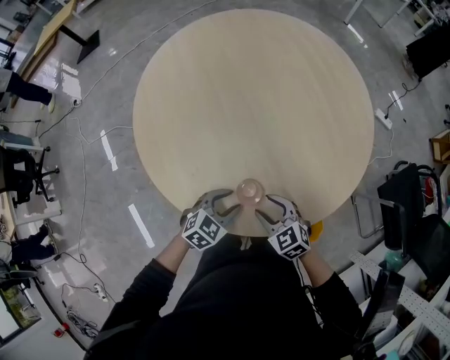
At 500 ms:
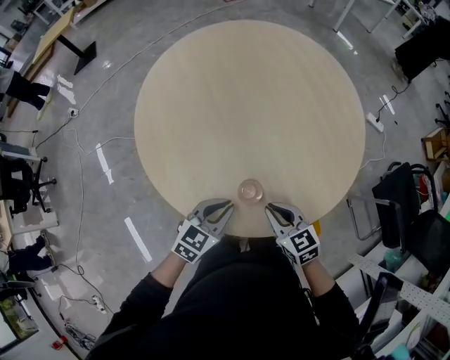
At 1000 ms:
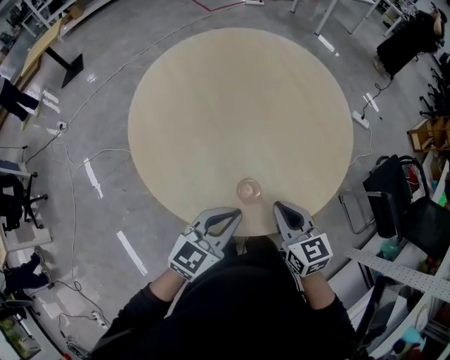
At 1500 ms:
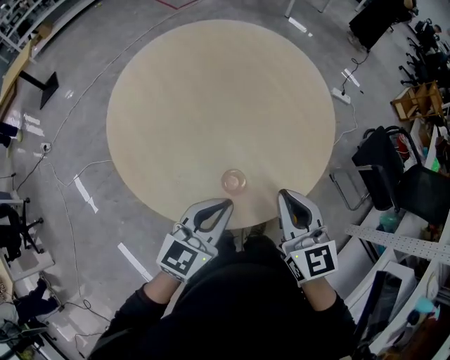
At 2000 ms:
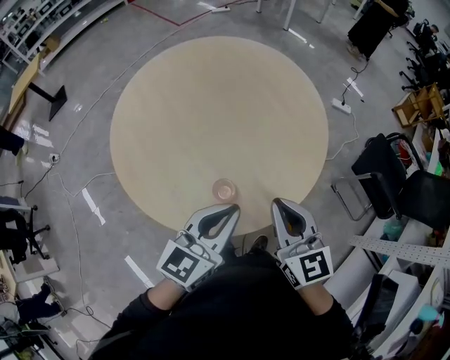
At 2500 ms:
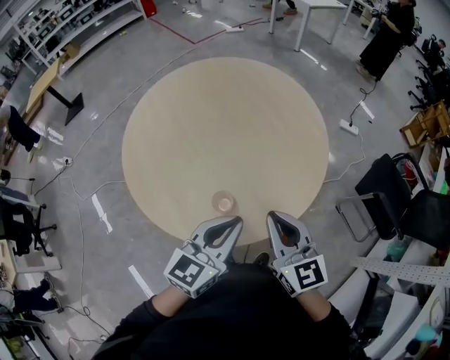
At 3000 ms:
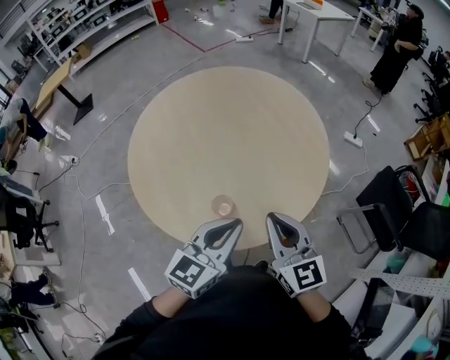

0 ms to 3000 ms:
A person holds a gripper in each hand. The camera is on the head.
0 ms to 1500 ms: The grippers both shift upward by roughly 20 cm. The right gripper turns by roughly 50 degrees, and closes its fingers, while the left gripper tips its fingers upward by some 30 degrees, and closes up.
1500 ms to 3000 ms: The left gripper is displaced to the right and upward by roughly 10 cm. Meanwhile the right gripper shifts about 5 cm to the right.

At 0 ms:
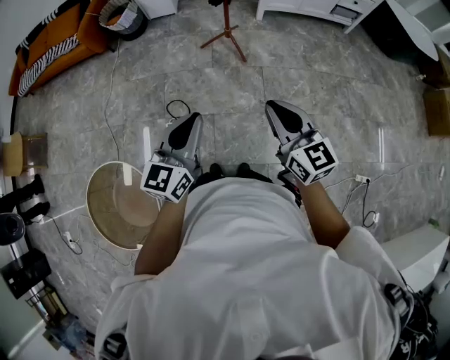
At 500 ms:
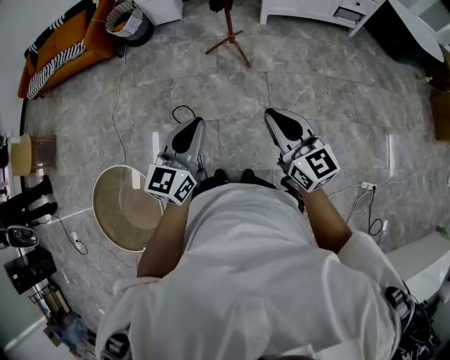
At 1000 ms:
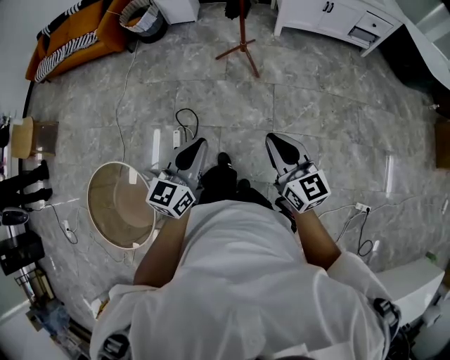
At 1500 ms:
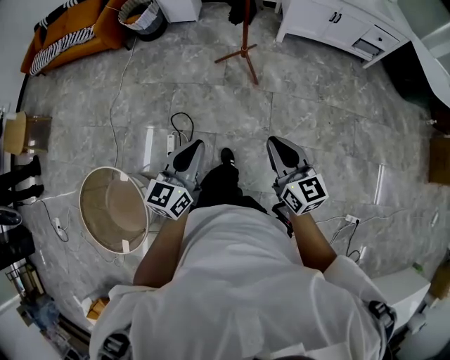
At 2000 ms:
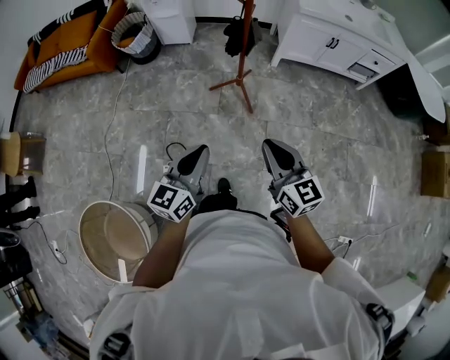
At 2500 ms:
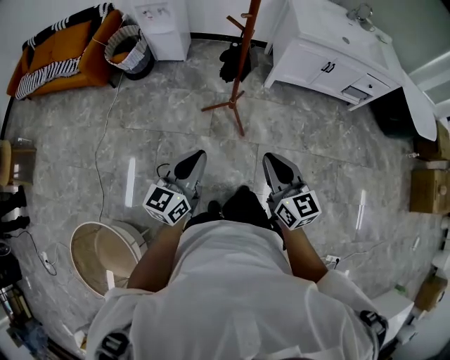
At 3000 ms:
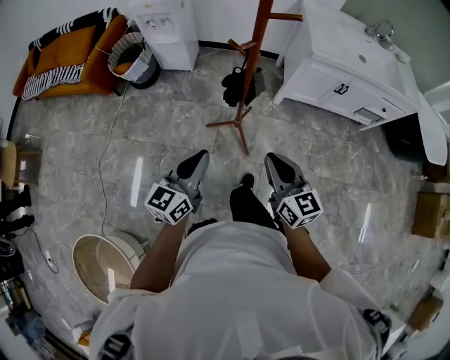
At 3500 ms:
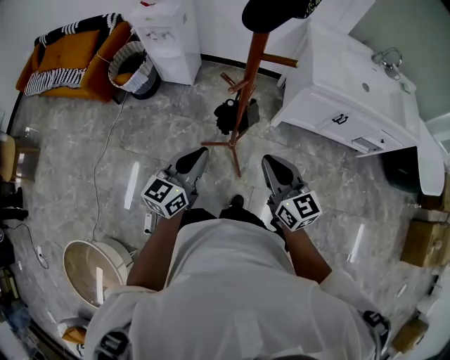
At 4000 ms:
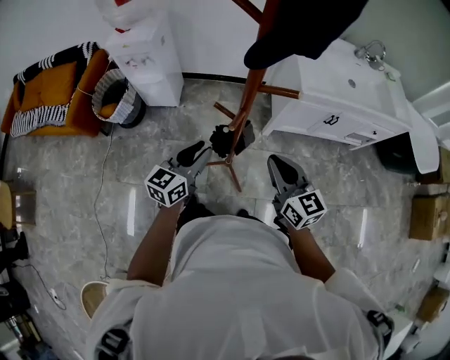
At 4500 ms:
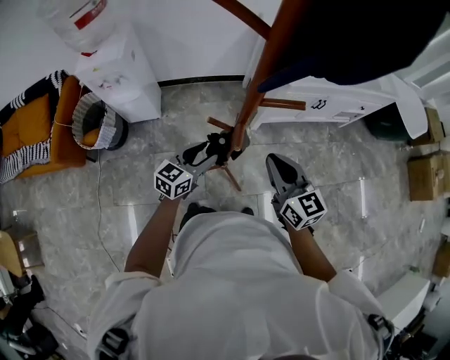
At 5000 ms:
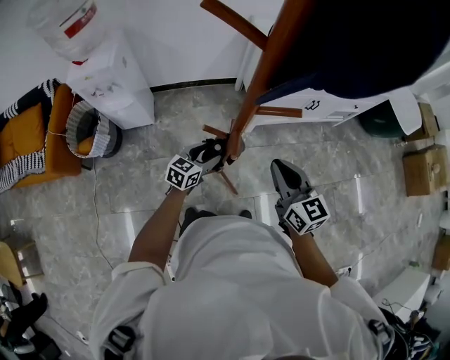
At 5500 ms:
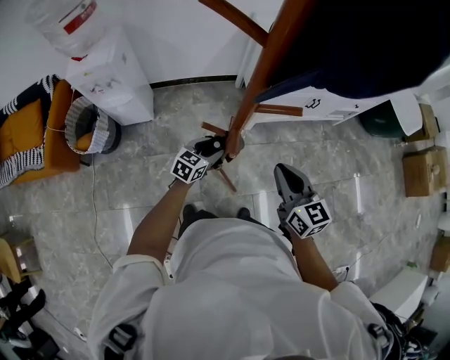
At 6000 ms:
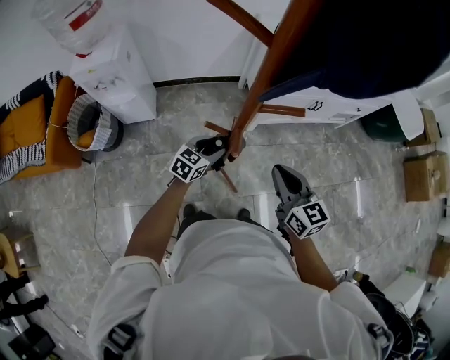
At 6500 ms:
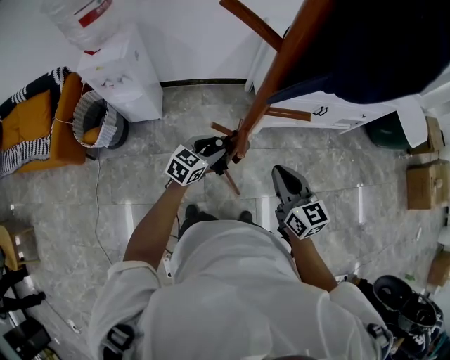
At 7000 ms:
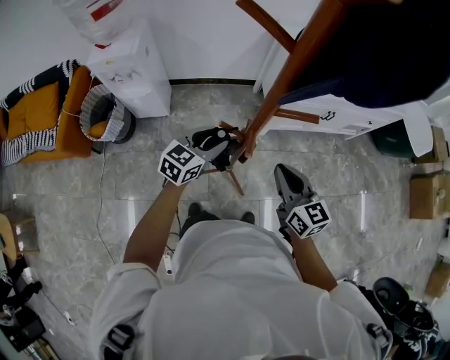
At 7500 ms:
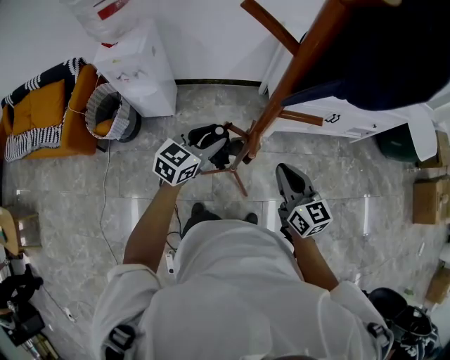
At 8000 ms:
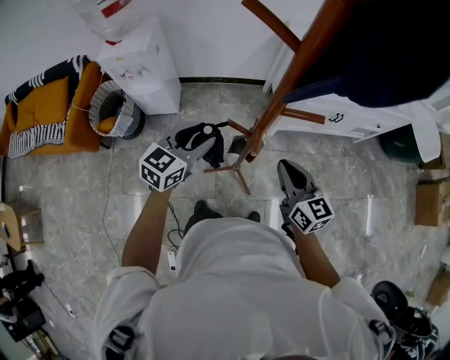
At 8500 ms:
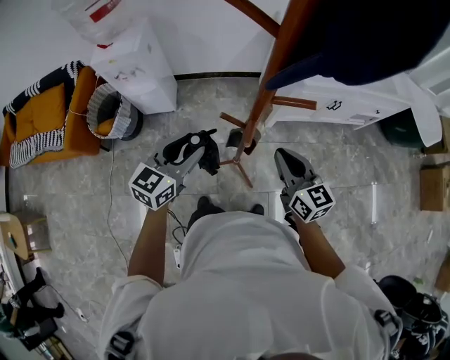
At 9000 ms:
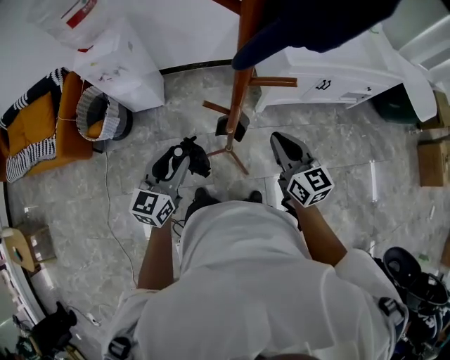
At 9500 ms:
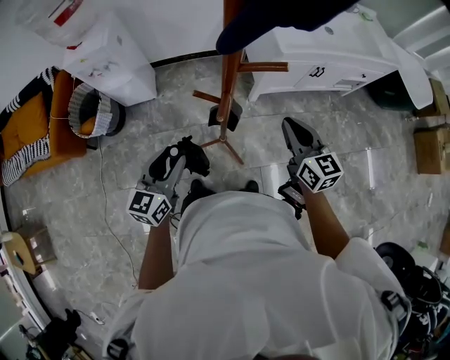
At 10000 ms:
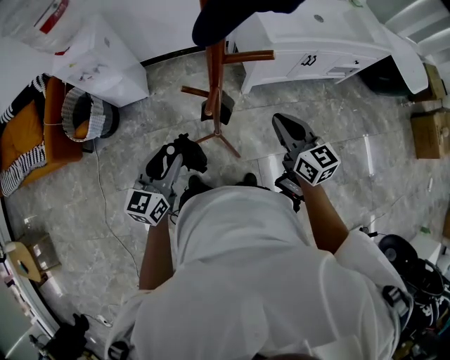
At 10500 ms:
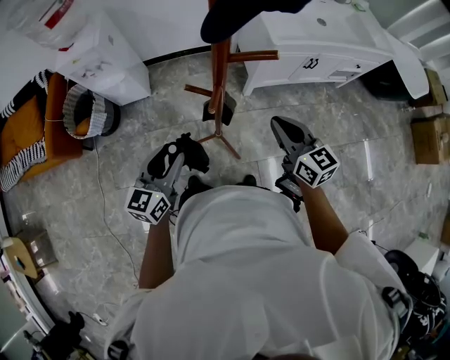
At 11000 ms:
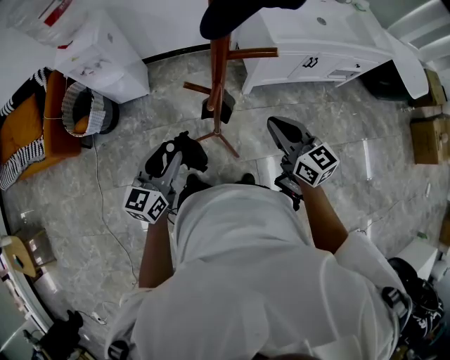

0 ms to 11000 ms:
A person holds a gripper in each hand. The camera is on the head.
0 ms to 2000 ms: The two grippers go about 25 cm forward.
2000 ms to 3500 ms: Both grippers are carried forward, approximately 40 cm.
3500 ms to 5500 ms: The left gripper shifts by roughly 30 cm, changes its angle by some 40 degrees, and opens its fingers. The right gripper changes place by roughly 10 cm, and turns by approximately 30 degrees.
5500 ms to 7500 ms: The left gripper moves upward, some 15 cm.
7500 ms to 9000 ms: The left gripper heads backward, covering roughly 10 cm.
9000 ms to 11000 ms: There are only small adjustments of the grippers.

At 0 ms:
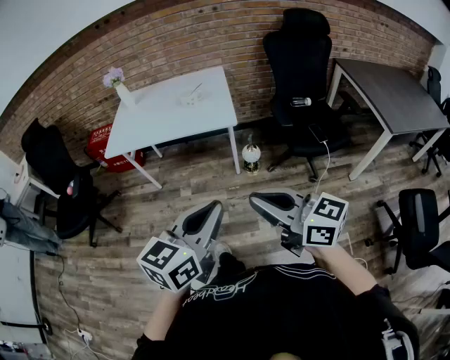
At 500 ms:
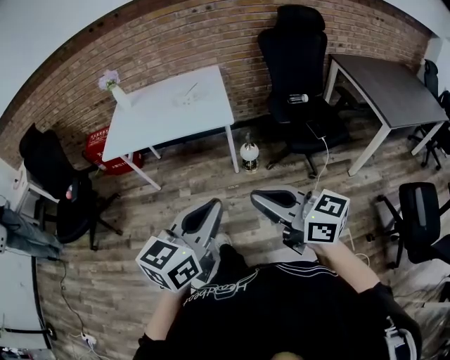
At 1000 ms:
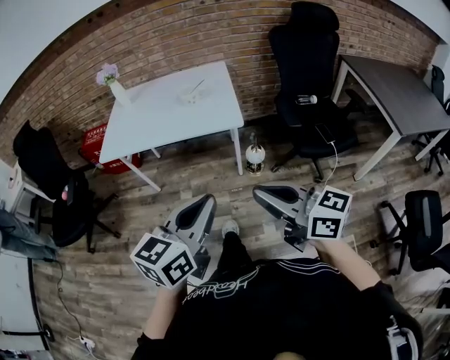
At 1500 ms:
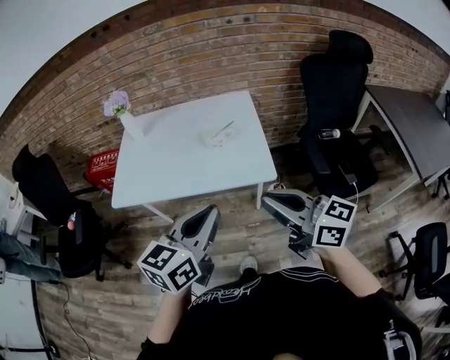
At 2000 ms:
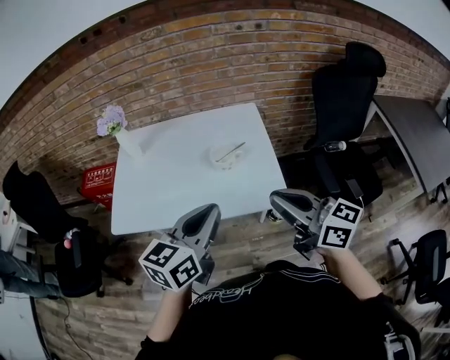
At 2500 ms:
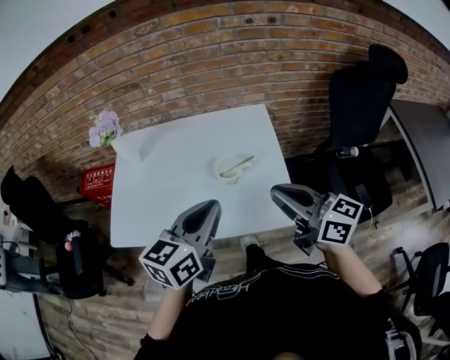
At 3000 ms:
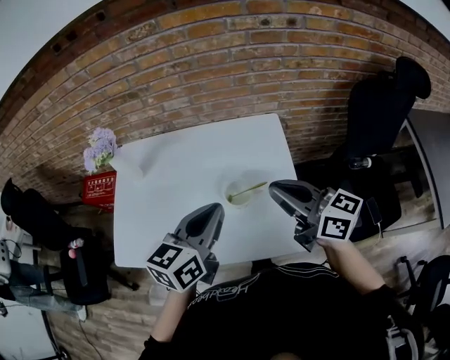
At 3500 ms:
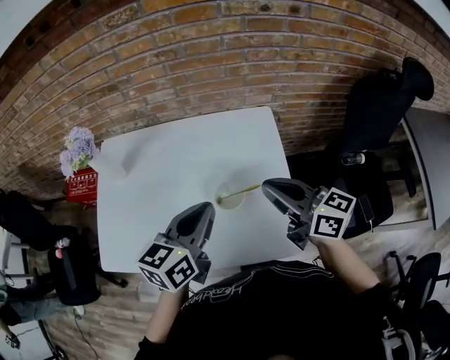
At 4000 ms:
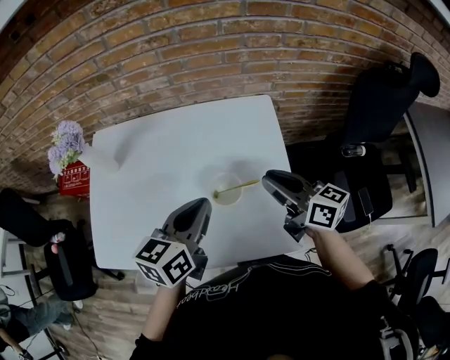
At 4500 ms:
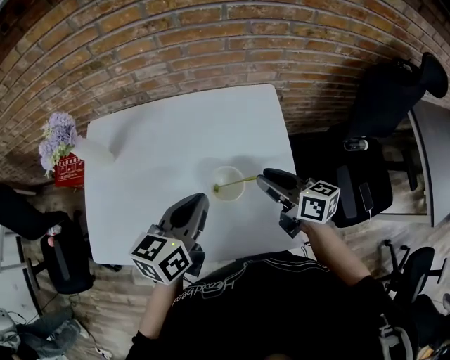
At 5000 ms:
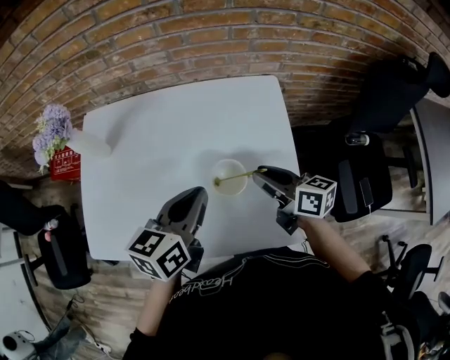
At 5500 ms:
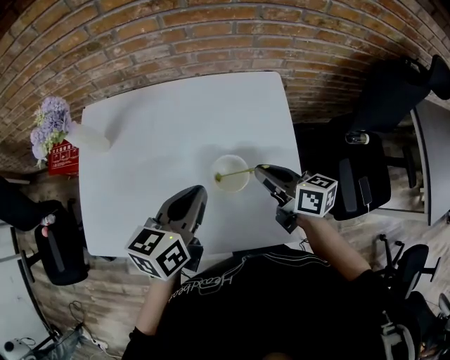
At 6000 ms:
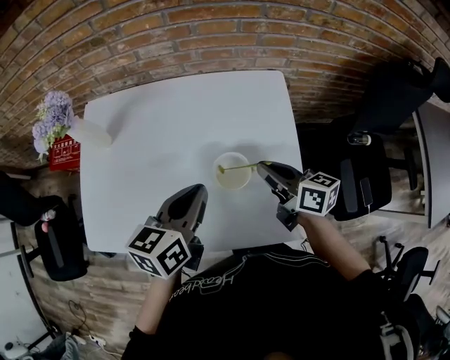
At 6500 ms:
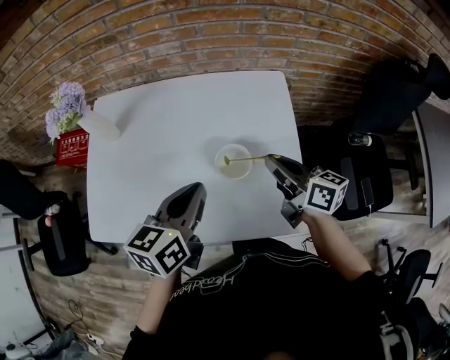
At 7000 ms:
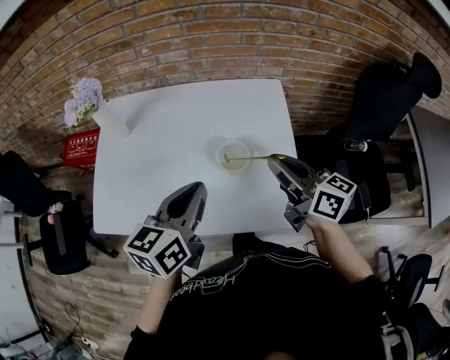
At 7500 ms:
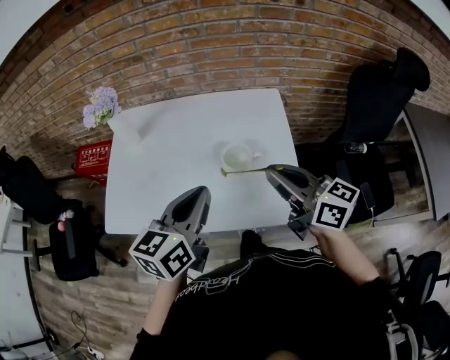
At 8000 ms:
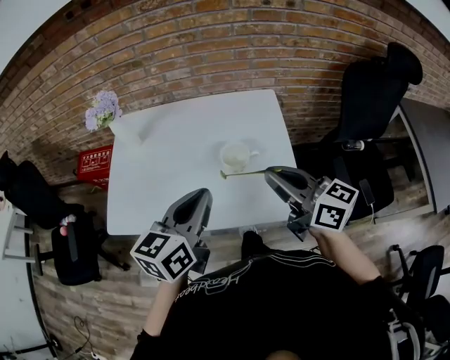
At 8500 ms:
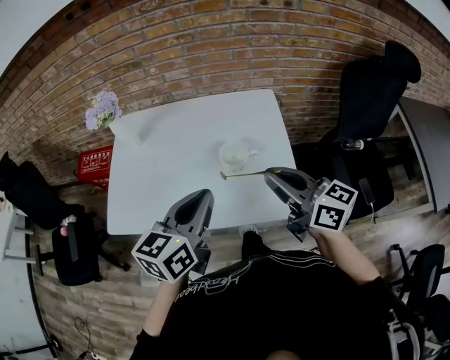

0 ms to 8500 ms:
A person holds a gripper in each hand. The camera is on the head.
0 ms to 2000 ms: Both grippers are carried forward, roughly 50 cm.
2000 ms to 4000 ms: The two grippers go about 30 cm forward and downward.
6500 ms to 8500 ms: The two grippers go roughly 15 cm backward and upward.

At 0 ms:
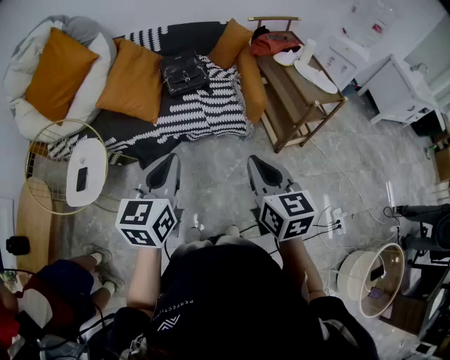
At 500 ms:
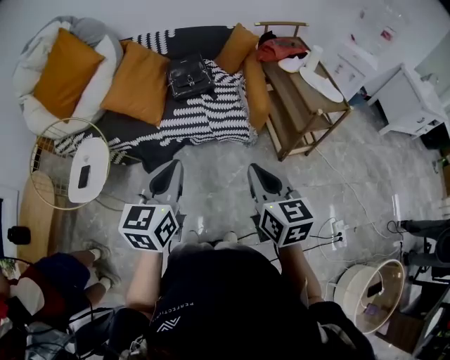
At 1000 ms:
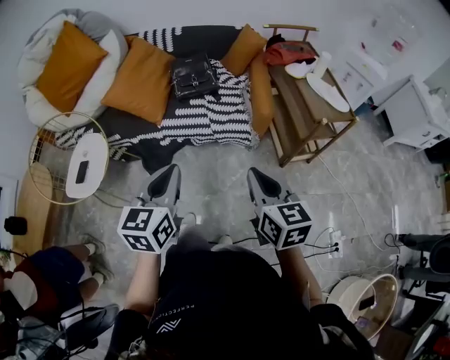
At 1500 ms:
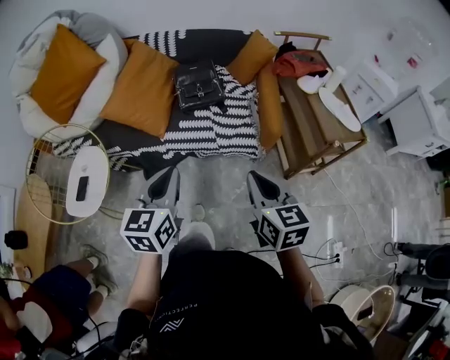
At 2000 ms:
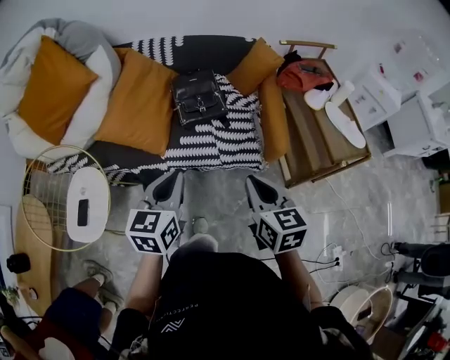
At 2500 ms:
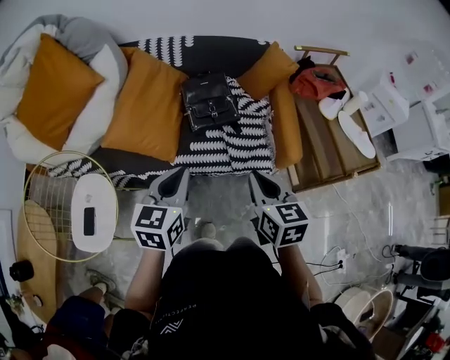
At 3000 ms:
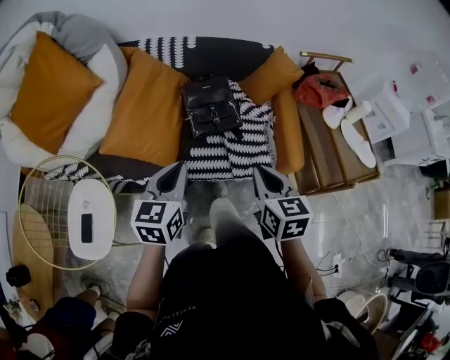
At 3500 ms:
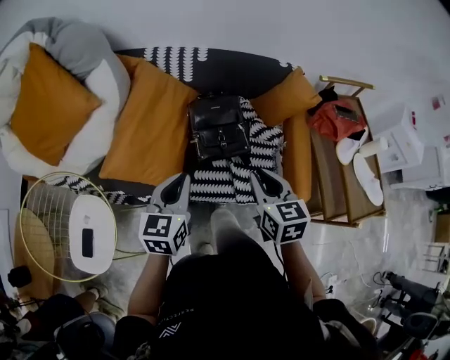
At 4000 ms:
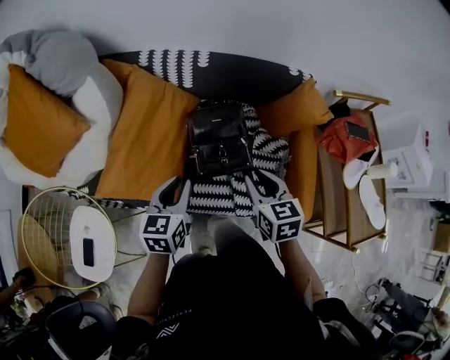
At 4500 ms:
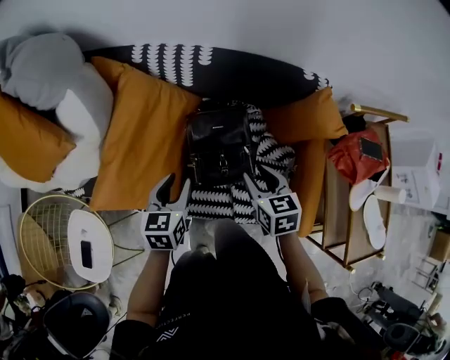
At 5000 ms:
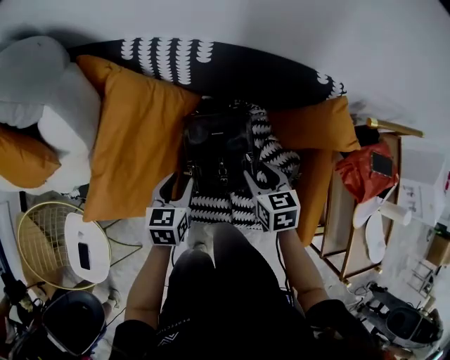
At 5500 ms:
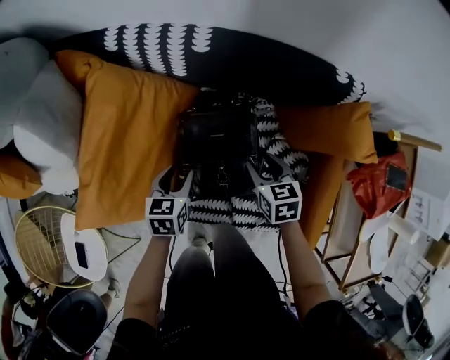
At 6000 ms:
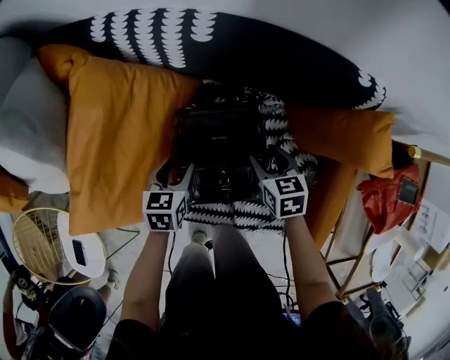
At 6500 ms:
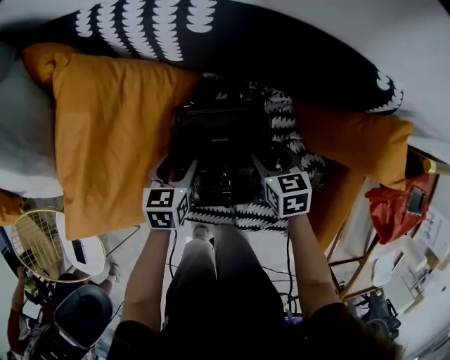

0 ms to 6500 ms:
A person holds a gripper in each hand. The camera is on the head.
0 ms to 2000 ms: Both grippers travel together forward, roughly 25 cm.
2000 ms to 4500 ms: The right gripper is displaced forward by some 40 cm, and opens up, while the left gripper heads forward and downward, covering about 40 cm, and opens up.
4500 ms to 6500 ms: Both grippers move downward and forward, about 25 cm. The left gripper opens. The right gripper opens.
